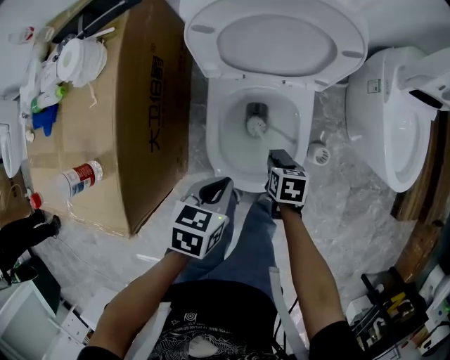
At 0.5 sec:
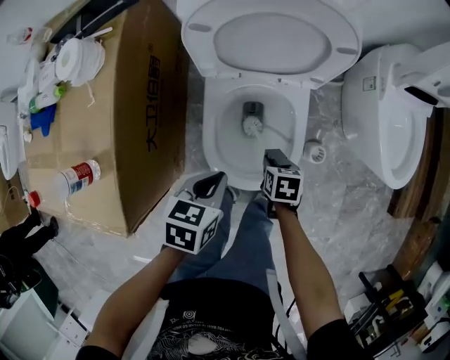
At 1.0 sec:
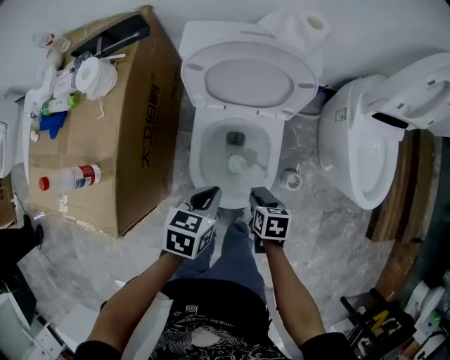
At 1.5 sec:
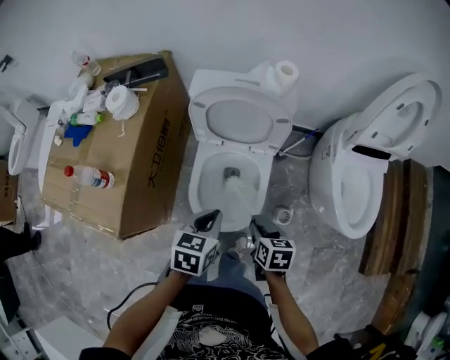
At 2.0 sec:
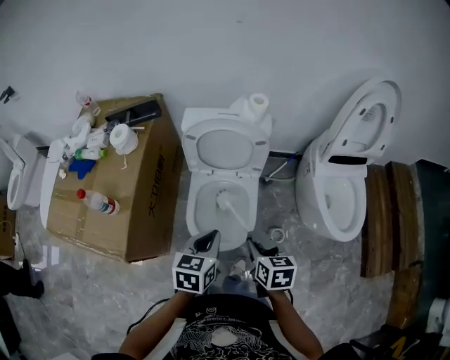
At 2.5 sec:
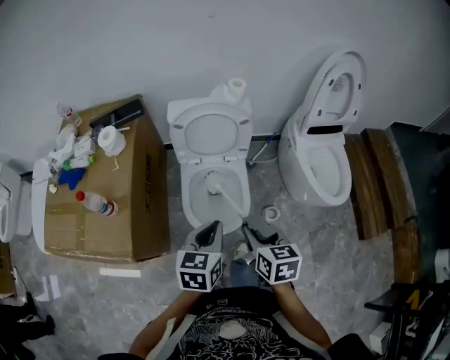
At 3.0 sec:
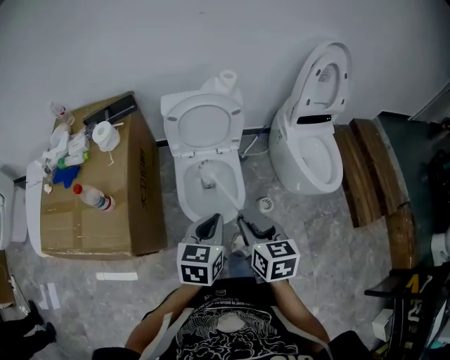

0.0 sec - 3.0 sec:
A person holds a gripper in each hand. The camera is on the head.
0.0 sec - 1.5 sec: The right gripper heads upward, covering roughly 20 cm. The left gripper shifts roughly 15 cm upward and to the right.
1.5 sec - 3.0 sec: Both grippers travel together upward and backward, some 20 cm. The right gripper swivels about 30 degrees.

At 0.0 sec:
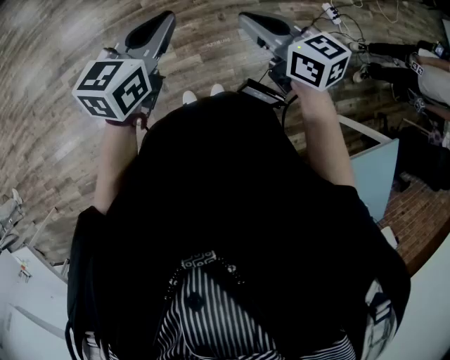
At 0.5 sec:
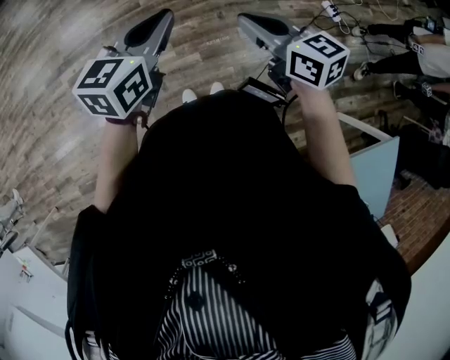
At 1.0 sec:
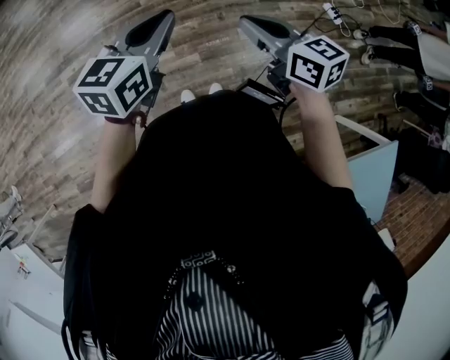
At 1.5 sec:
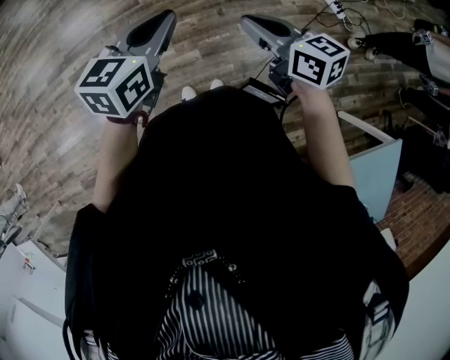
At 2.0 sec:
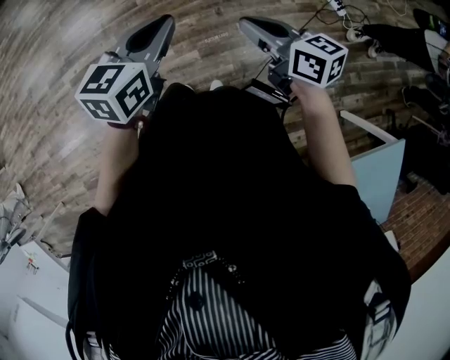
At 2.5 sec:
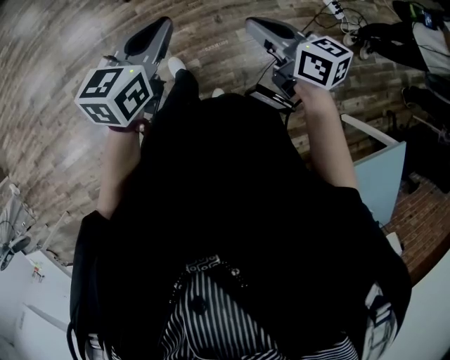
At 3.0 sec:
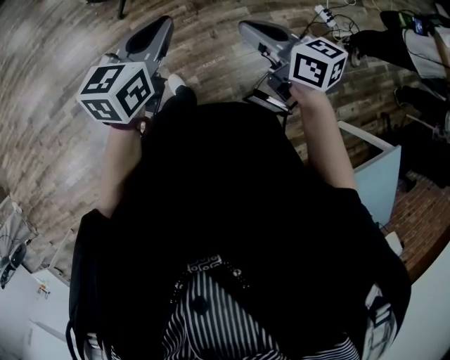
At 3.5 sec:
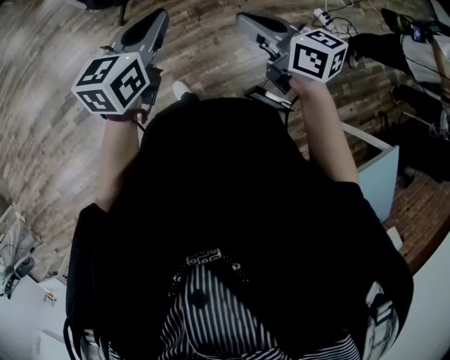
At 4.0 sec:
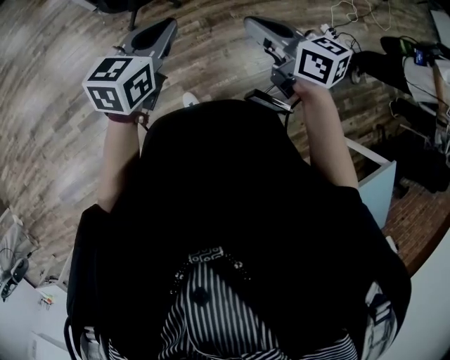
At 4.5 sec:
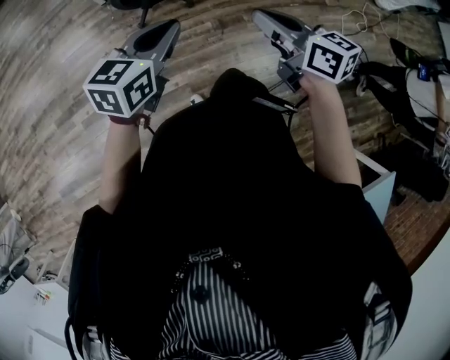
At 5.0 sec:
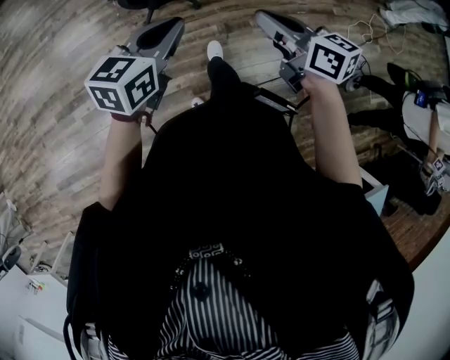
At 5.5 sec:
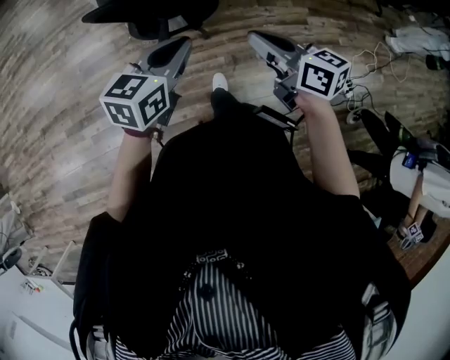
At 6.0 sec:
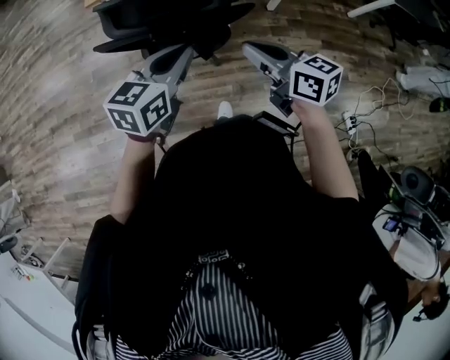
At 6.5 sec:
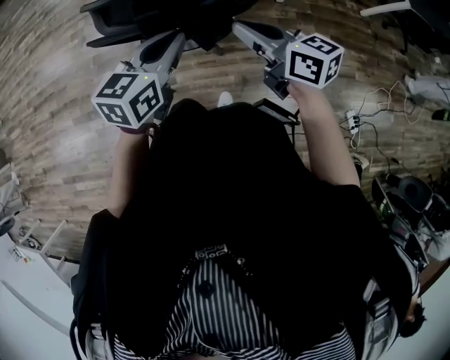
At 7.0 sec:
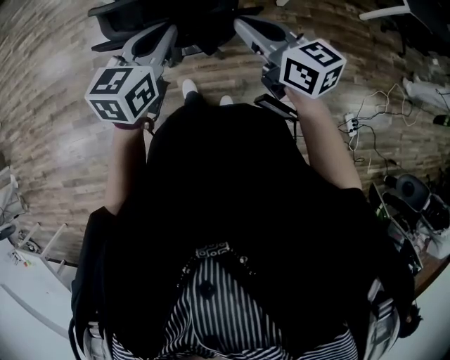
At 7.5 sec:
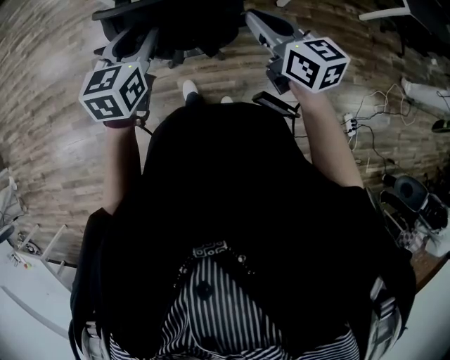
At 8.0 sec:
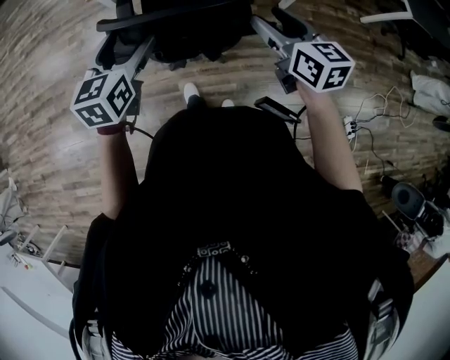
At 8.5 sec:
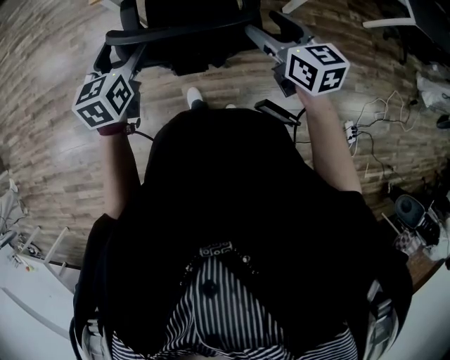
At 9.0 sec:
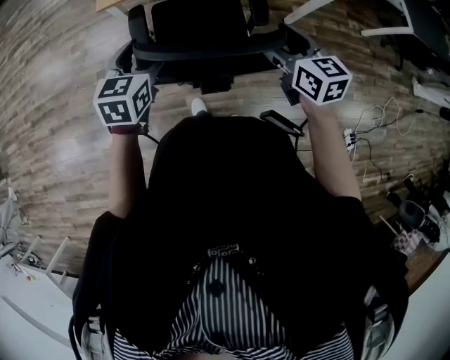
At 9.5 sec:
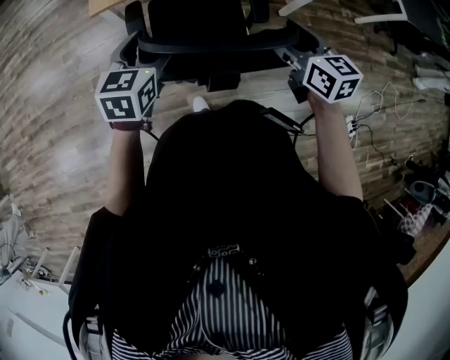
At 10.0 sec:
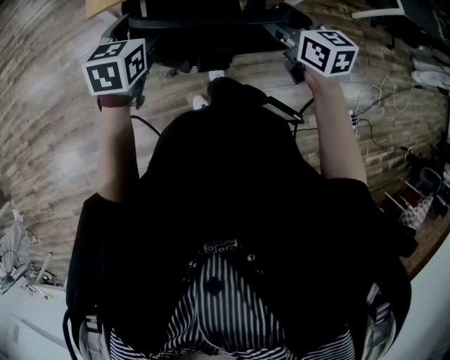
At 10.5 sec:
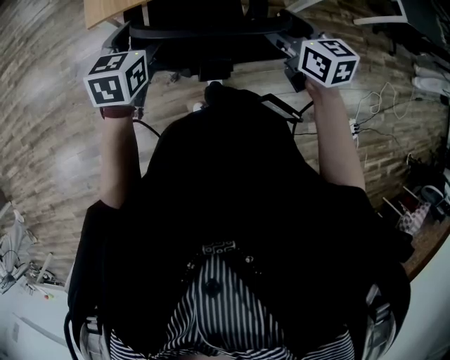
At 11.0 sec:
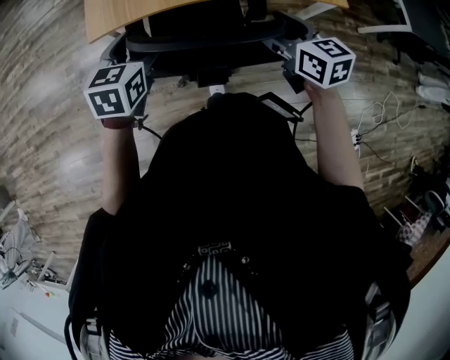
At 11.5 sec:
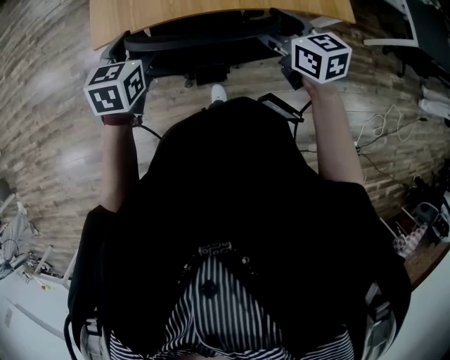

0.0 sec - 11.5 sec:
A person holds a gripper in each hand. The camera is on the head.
0.0 sec - 2.0 sec: The left gripper heads to the right, covering approximately 10 cm, while the right gripper goes roughly 10 cm to the right and downward.
2.0 sec - 4.0 sec: Both grippers move forward and to the left, about 35 cm.
4.0 sec - 6.0 sec: Both grippers move forward, roughly 40 cm.
6.0 sec - 7.5 sec: The left gripper moves forward and to the left, some 15 cm. Meanwhile the right gripper moves forward, some 15 cm.
7.5 sec - 9.5 sec: The right gripper heads forward, covering approximately 20 cm, and opens up; the left gripper is displaced forward and to the left by about 25 cm, and opens up.
9.5 sec - 11.5 sec: Both grippers move forward, some 20 cm.

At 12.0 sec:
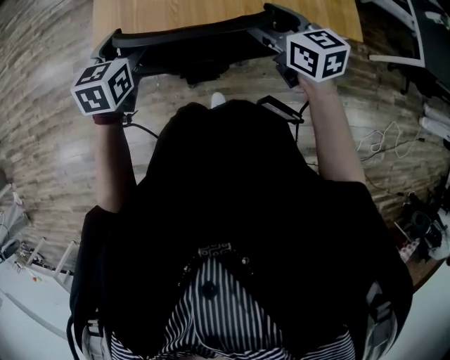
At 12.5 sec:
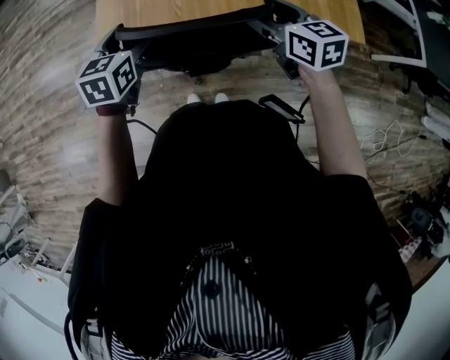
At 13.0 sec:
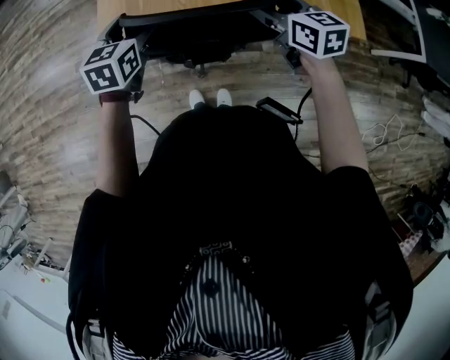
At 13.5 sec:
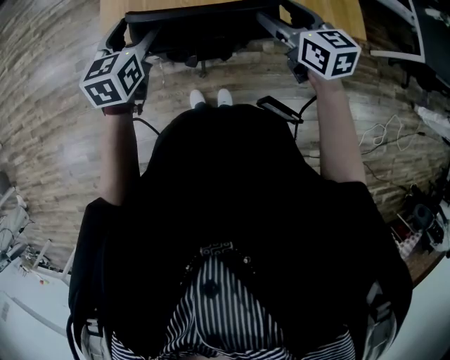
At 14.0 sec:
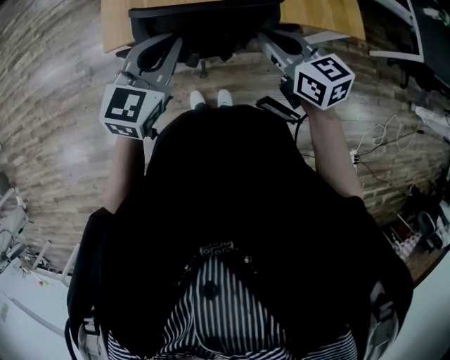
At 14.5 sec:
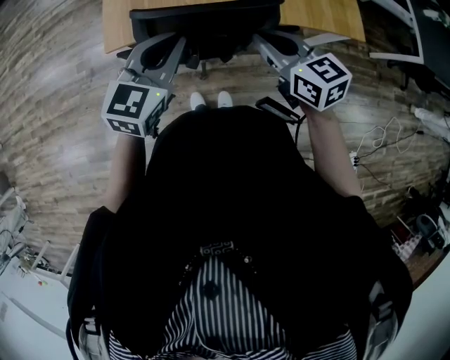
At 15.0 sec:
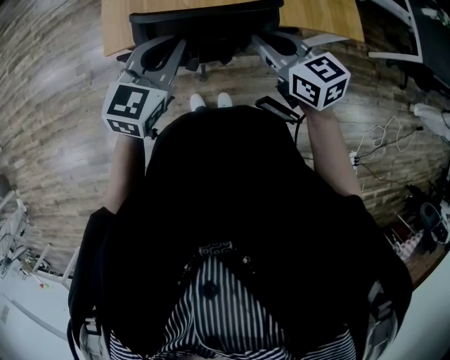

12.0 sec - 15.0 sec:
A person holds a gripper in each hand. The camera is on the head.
12.0 sec - 13.5 sec: The grippers make only small movements.
13.5 sec - 15.0 sec: The right gripper travels backward and to the left by about 10 cm, and closes up. The left gripper travels backward and to the right by roughly 10 cm, swivels approximately 20 degrees, and closes up.

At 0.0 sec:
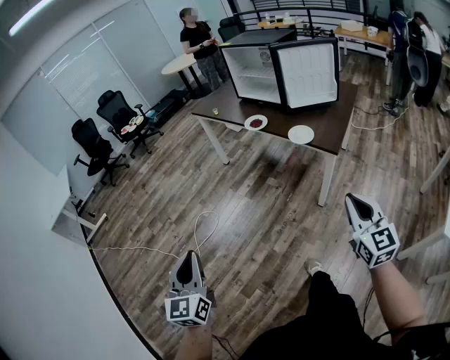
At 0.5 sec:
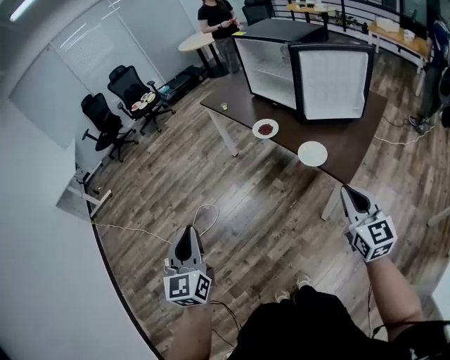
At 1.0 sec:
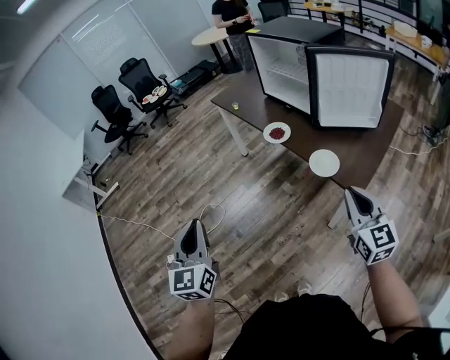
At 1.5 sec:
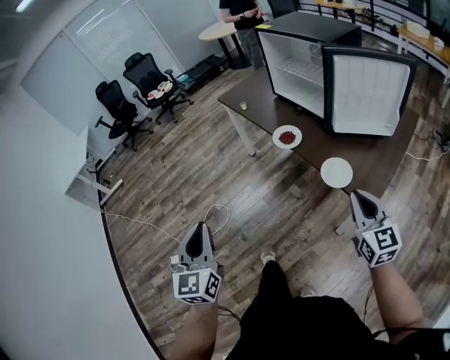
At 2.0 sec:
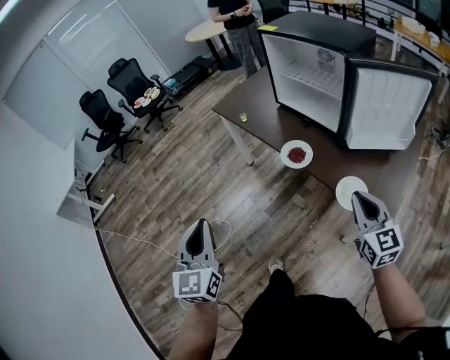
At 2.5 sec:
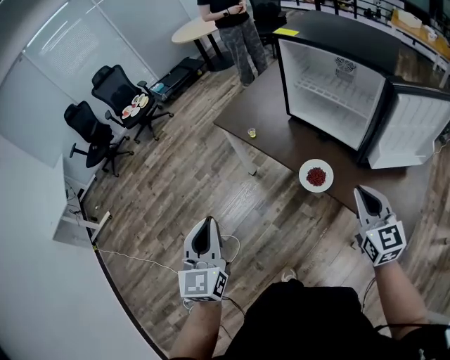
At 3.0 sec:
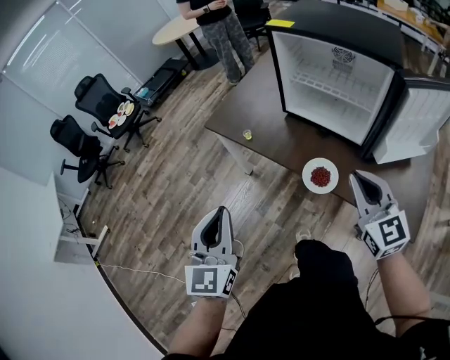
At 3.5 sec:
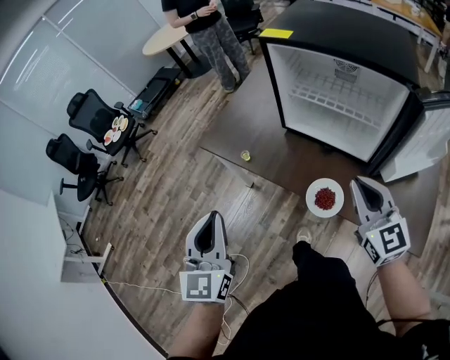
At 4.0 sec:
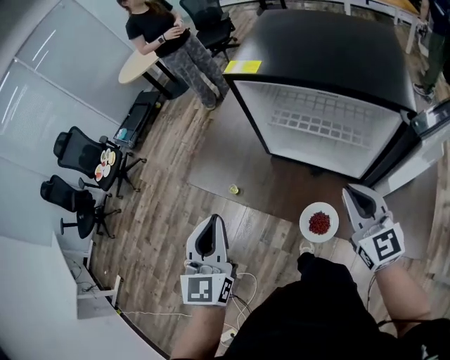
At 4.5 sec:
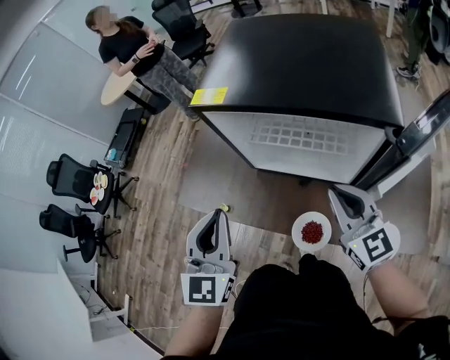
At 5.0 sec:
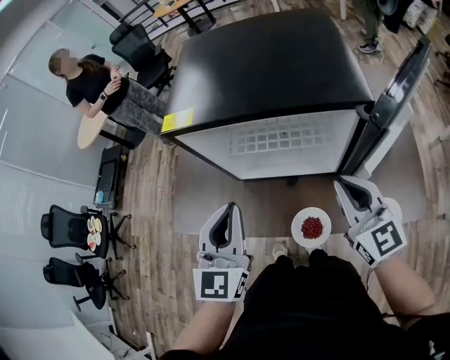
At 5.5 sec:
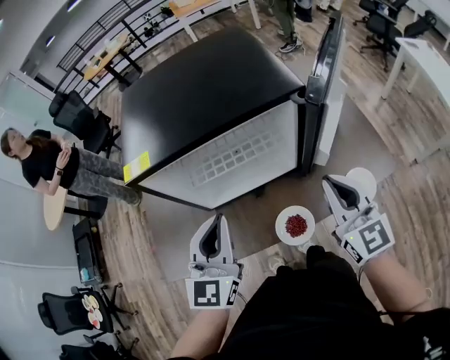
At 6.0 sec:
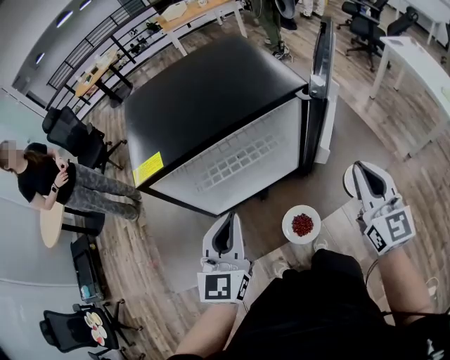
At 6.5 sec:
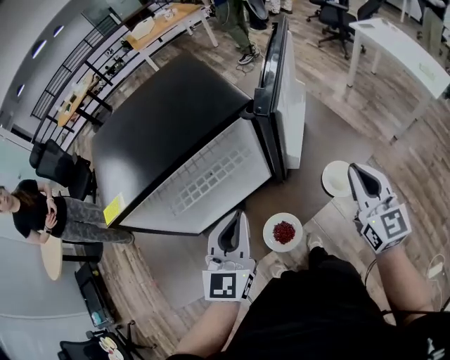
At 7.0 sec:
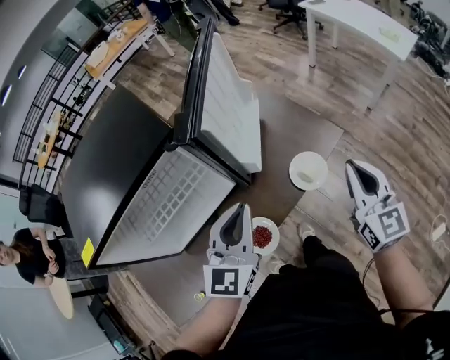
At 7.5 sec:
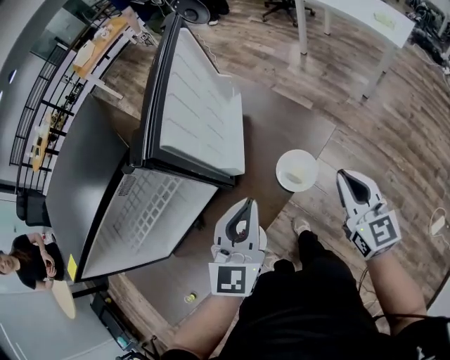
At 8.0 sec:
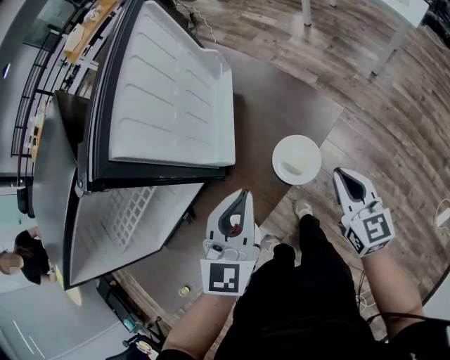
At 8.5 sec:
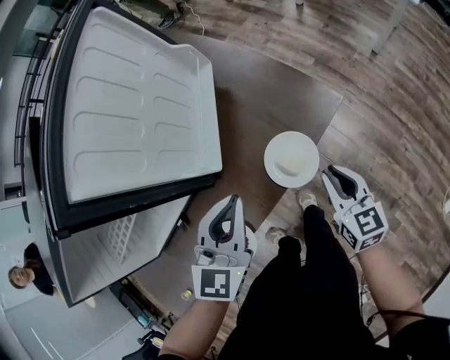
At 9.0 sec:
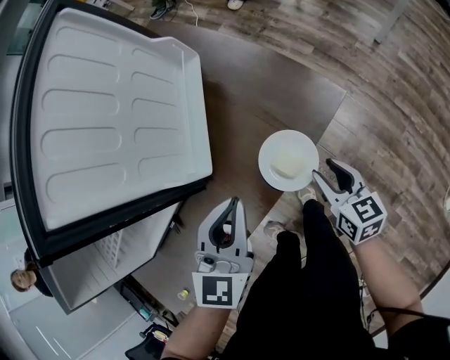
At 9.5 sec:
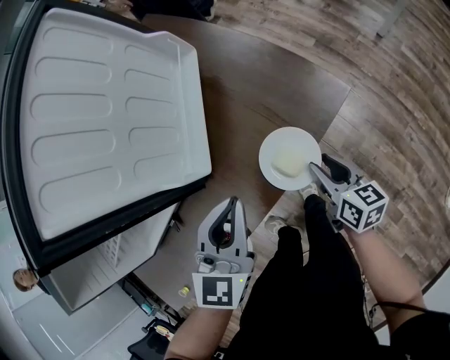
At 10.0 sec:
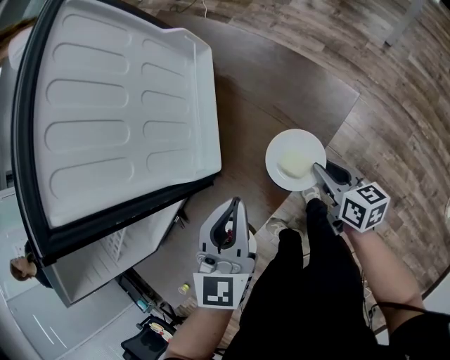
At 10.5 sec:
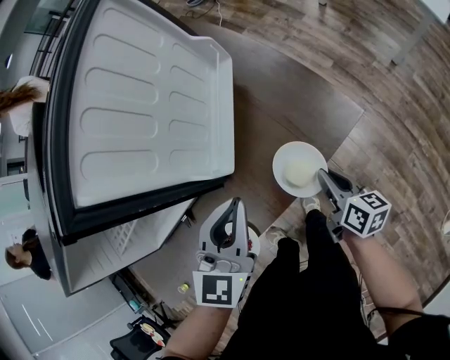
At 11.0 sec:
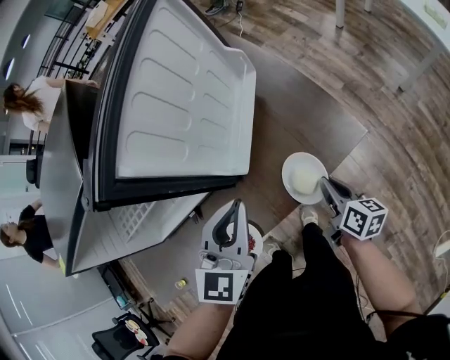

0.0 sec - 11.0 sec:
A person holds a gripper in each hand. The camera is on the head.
0.0 sec - 2.0 sec: The pair of grippers is taken forward, approximately 50 cm.
2.0 sec - 3.5 sec: The grippers both shift forward by roughly 35 cm.
3.5 sec - 5.5 sec: The right gripper moves some 10 cm, and rotates roughly 50 degrees. The left gripper changes place by roughly 30 cm, and changes its angle by roughly 50 degrees.
5.5 sec - 7.5 sec: The left gripper ends up some 30 cm from where it was, and rotates about 40 degrees; the right gripper moves some 30 cm, and rotates some 30 degrees.
7.5 sec - 9.0 sec: The left gripper is displaced downward and forward by roughly 15 cm; the right gripper shifts about 25 cm downward, rotates some 30 degrees, and opens.
9.0 sec - 11.0 sec: The right gripper moves some 5 cm, swivels approximately 20 degrees, and closes its fingers. The left gripper shifts roughly 10 cm upward and to the left.
